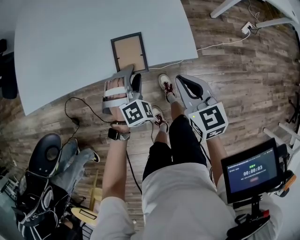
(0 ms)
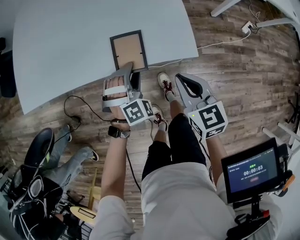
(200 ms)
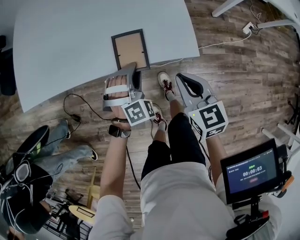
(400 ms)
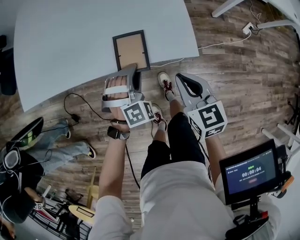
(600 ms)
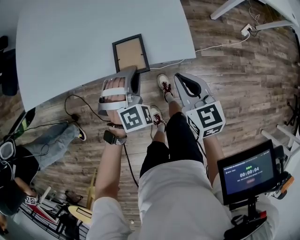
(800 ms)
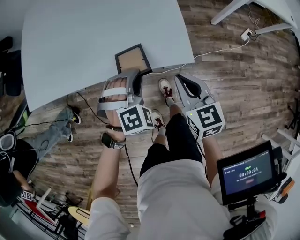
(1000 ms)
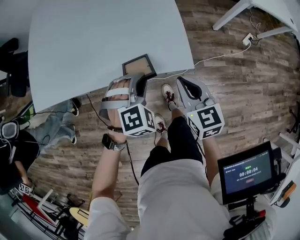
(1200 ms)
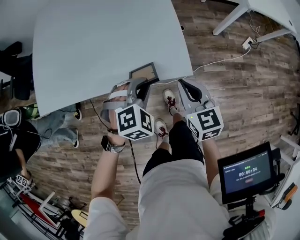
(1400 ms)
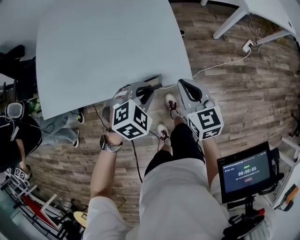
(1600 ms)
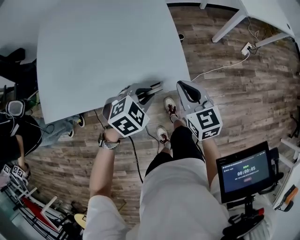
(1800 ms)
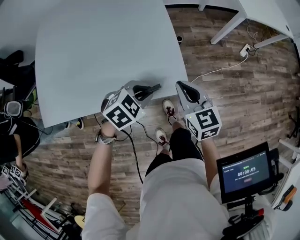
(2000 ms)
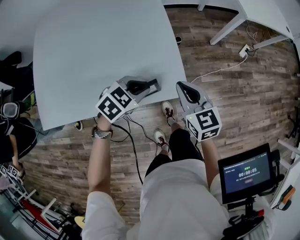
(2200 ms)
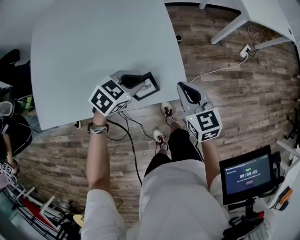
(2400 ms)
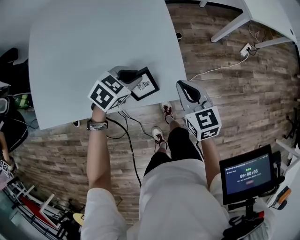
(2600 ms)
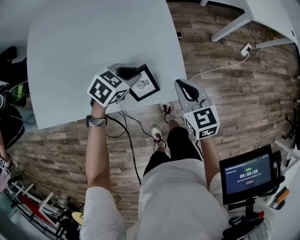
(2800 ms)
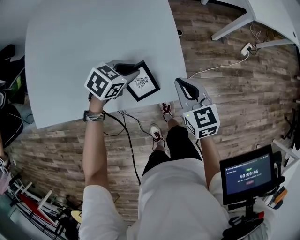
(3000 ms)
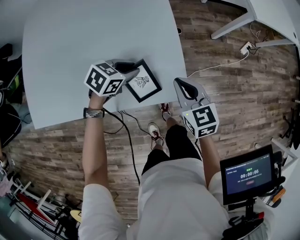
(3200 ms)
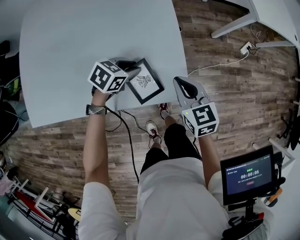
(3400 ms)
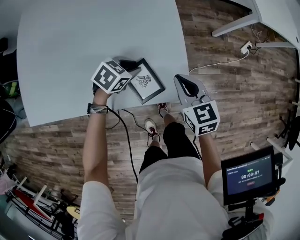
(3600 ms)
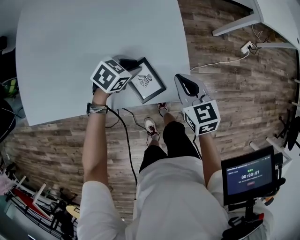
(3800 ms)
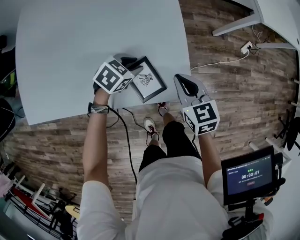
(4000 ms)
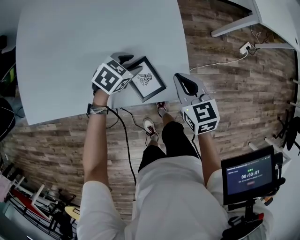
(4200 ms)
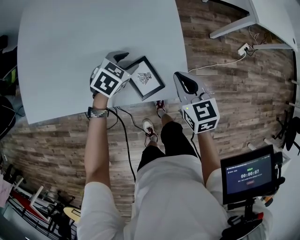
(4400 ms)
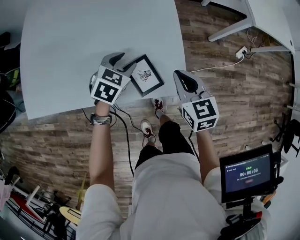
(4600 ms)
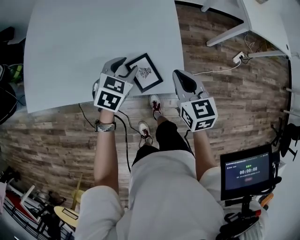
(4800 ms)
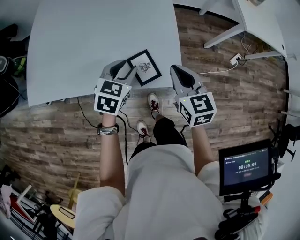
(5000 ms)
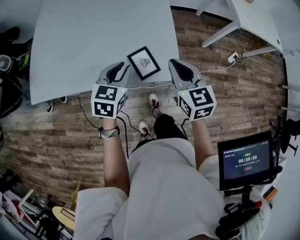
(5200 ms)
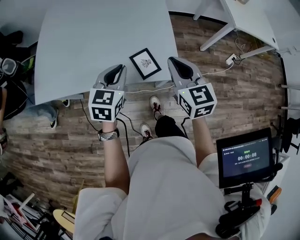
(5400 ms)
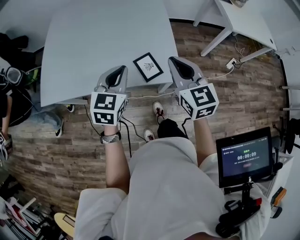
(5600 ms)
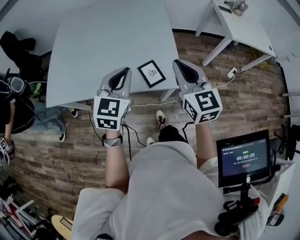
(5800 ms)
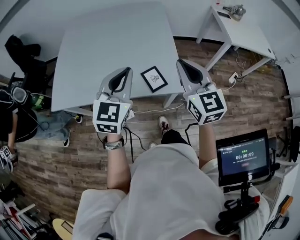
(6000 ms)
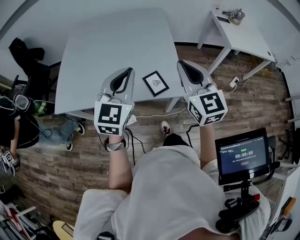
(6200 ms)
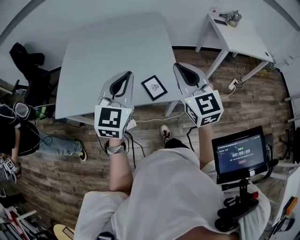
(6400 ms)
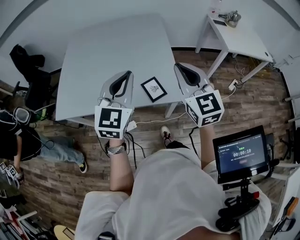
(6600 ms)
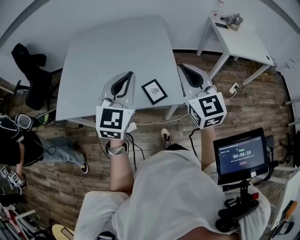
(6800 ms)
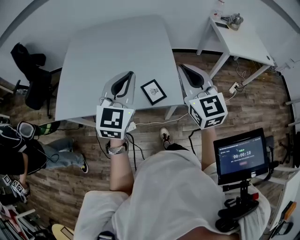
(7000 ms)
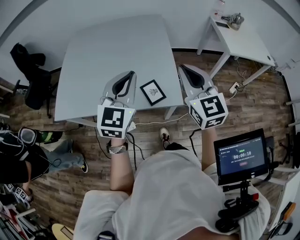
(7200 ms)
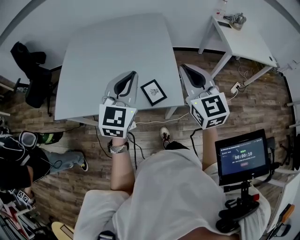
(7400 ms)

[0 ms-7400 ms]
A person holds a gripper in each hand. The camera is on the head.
0 ms to 1400 ms: The right gripper moves upward, roughly 5 cm. Meanwhile the left gripper goes about 15 cm upward, and closes its fingers.
1400 ms to 3000 ms: The right gripper moves forward, some 10 cm, while the left gripper moves forward and to the left, roughly 15 cm, and changes its angle by about 50 degrees.
3000 ms to 4400 ms: The left gripper opens up.
4400 ms to 6000 ms: The right gripper moves upward, roughly 30 cm, and turns by approximately 30 degrees, while the left gripper heads upward and backward, covering approximately 40 cm, tilts its fingers about 40 degrees upward, and closes its fingers.
6000 ms to 7400 ms: The grippers make only small movements.

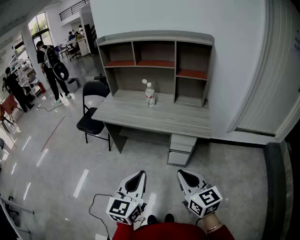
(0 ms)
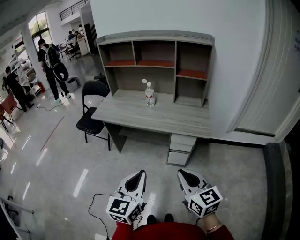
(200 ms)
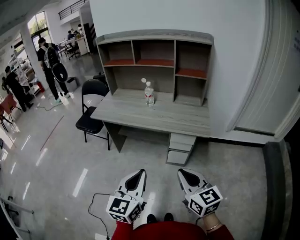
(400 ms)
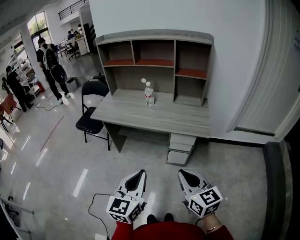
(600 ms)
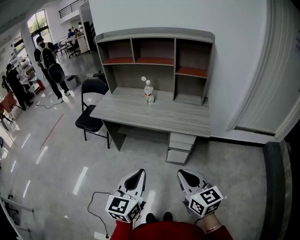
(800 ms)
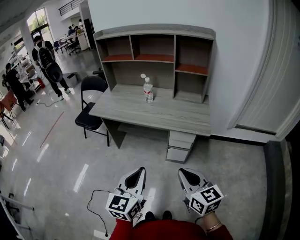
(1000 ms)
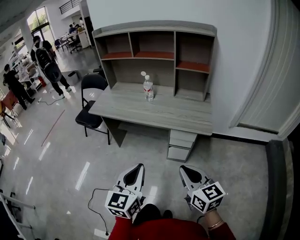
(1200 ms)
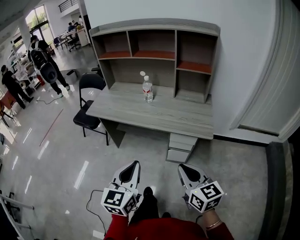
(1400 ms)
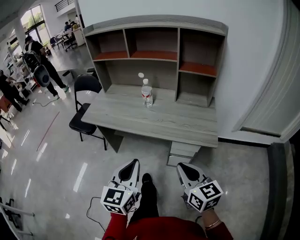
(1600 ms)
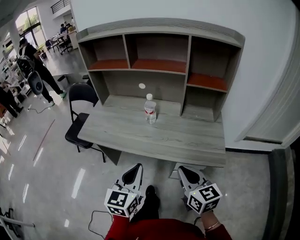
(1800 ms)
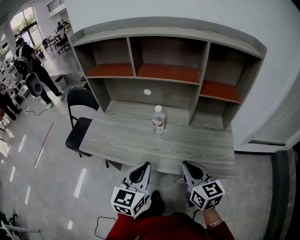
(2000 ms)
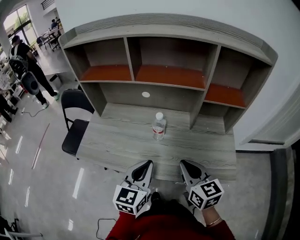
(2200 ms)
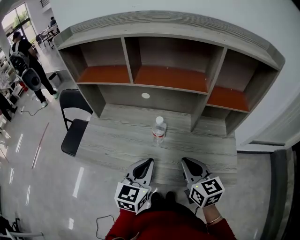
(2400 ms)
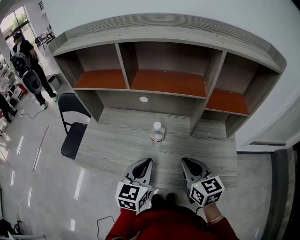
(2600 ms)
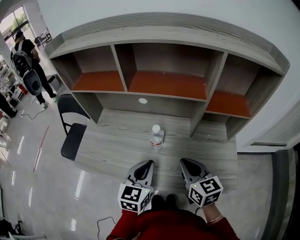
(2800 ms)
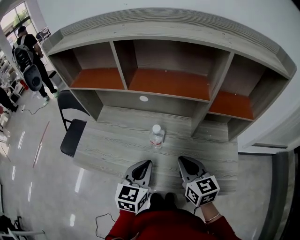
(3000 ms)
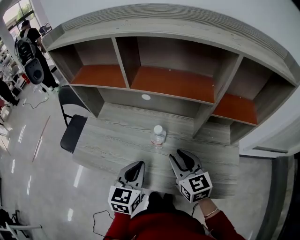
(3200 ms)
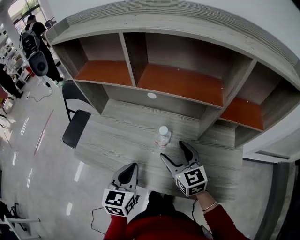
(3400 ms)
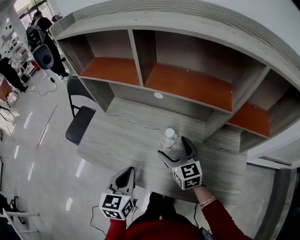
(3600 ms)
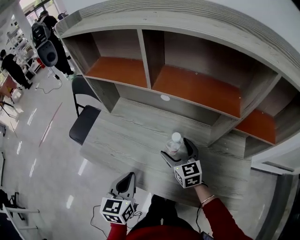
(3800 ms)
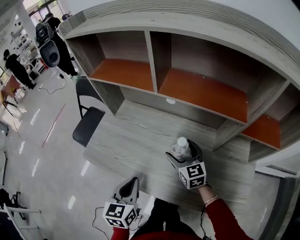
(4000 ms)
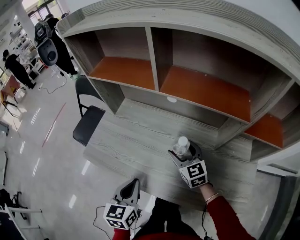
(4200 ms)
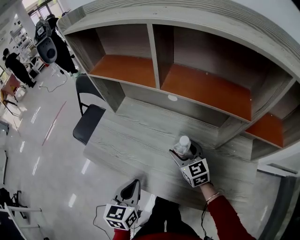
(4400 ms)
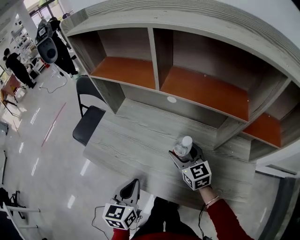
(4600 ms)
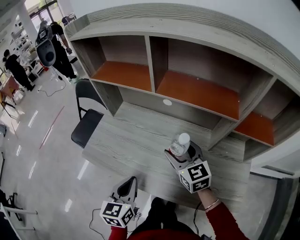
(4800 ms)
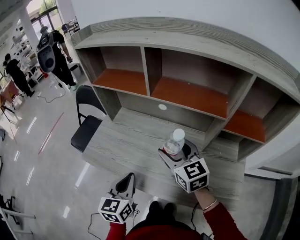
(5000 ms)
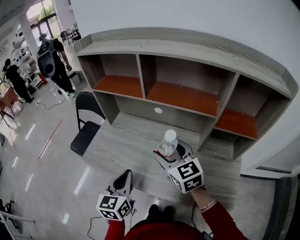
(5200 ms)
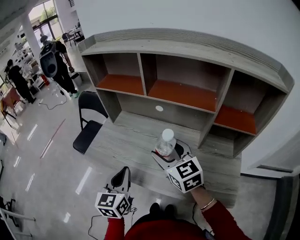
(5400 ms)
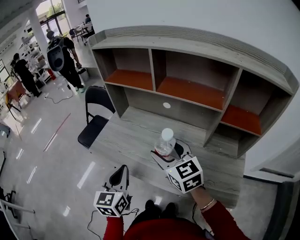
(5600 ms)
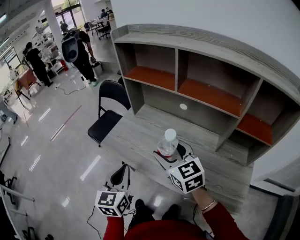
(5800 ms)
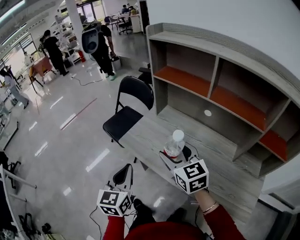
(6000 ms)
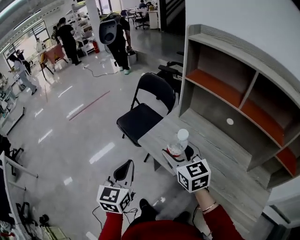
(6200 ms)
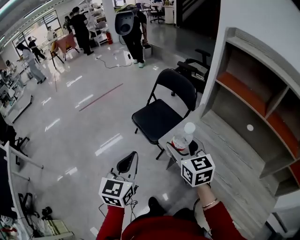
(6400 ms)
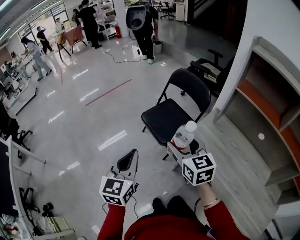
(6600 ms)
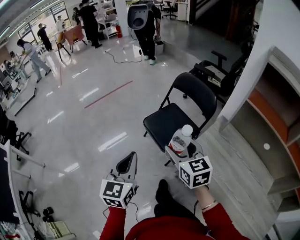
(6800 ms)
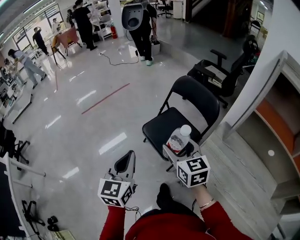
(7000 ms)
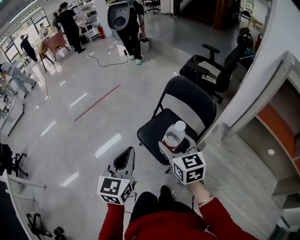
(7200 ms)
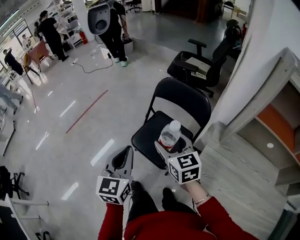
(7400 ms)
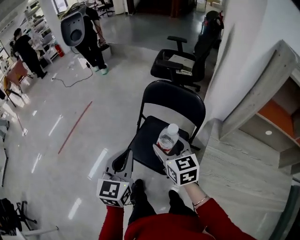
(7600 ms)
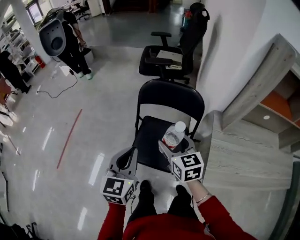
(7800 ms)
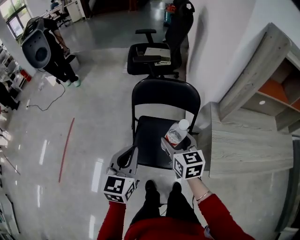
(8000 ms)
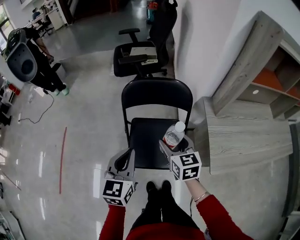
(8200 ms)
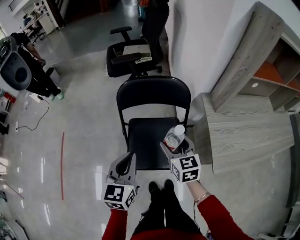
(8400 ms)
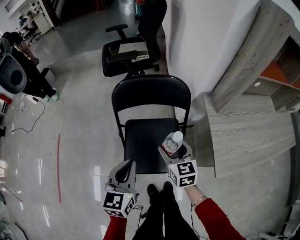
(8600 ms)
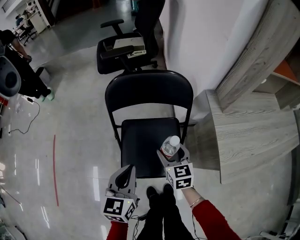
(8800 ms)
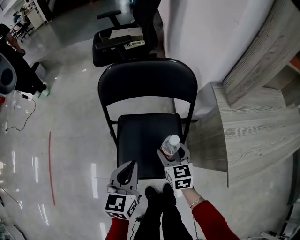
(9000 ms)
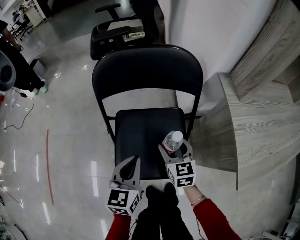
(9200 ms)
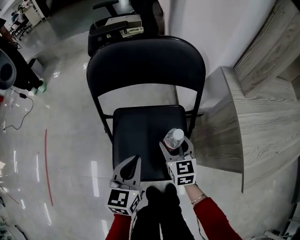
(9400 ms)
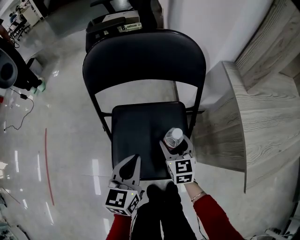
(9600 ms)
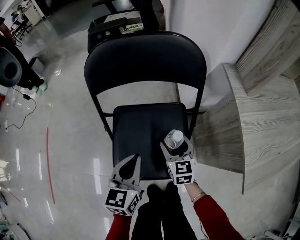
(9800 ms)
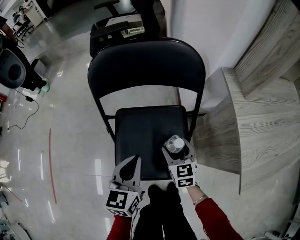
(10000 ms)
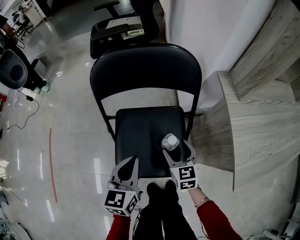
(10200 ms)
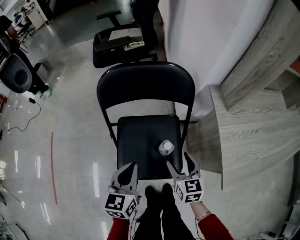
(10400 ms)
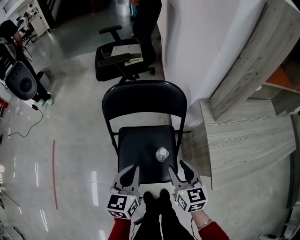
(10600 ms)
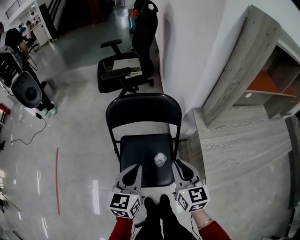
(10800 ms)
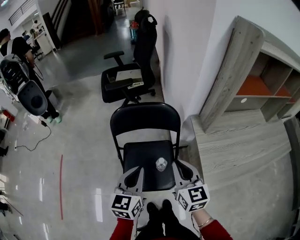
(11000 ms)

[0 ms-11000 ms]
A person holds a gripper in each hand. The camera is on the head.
0 ms to 1600 ms: The grippers both shift forward by about 15 cm.
1600 ms to 3200 ms: The two grippers go about 35 cm forward.
3200 ms to 4800 ms: The right gripper is displaced forward and to the left by roughly 10 cm, and opens. Meanwhile the left gripper is displaced to the left by roughly 10 cm.
4800 ms to 6200 ms: The two grippers go approximately 25 cm to the left. The right gripper changes its angle by some 20 degrees. Meanwhile the left gripper rotates about 20 degrees.
6200 ms to 7800 ms: Both grippers are carried approximately 50 cm. The right gripper swivels about 30 degrees. The left gripper changes its angle by approximately 30 degrees.
7800 ms to 9400 ms: The grippers both shift downward by about 30 cm. The left gripper turns by approximately 20 degrees, while the right gripper turns by approximately 30 degrees.
9400 ms to 11000 ms: The grippers both shift upward by about 30 cm. The right gripper closes.

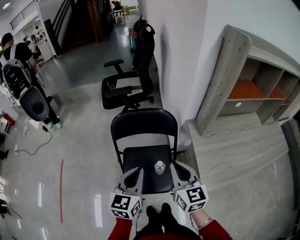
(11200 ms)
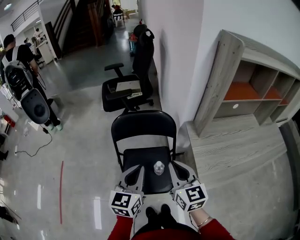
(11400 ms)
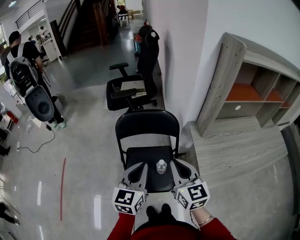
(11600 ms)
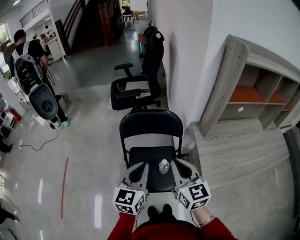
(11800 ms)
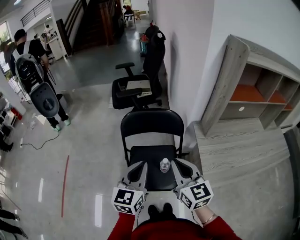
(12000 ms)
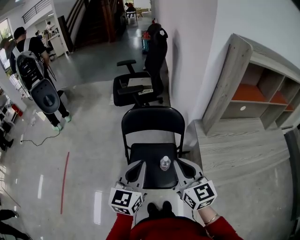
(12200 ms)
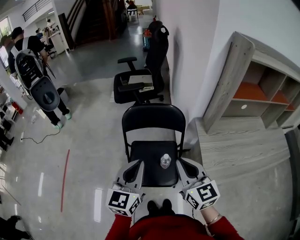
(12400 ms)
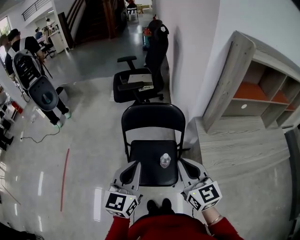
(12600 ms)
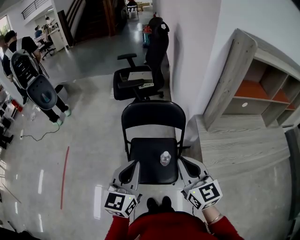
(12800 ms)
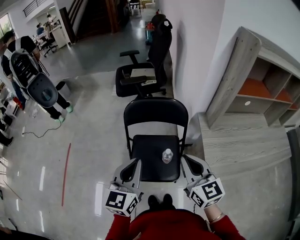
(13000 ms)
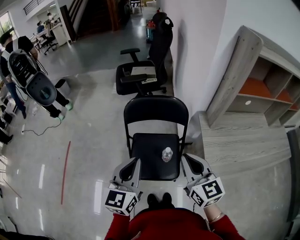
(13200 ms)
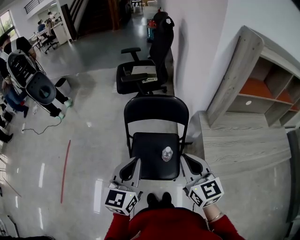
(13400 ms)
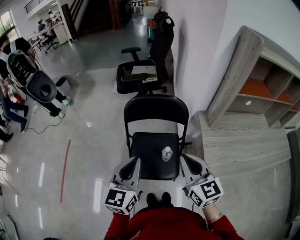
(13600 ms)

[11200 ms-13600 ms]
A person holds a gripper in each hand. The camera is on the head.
11200 ms to 12400 ms: The right gripper ends up some 5 cm from where it was, while the left gripper is displaced upward by about 5 cm.
12400 ms to 13600 ms: The grippers make only small movements.

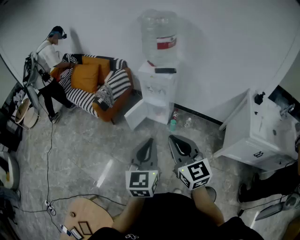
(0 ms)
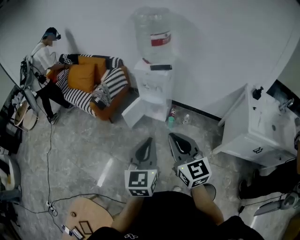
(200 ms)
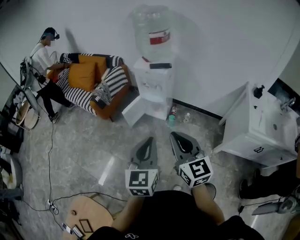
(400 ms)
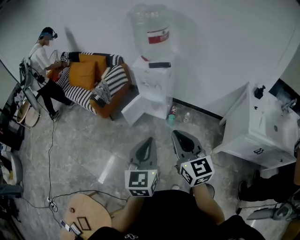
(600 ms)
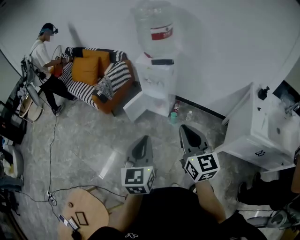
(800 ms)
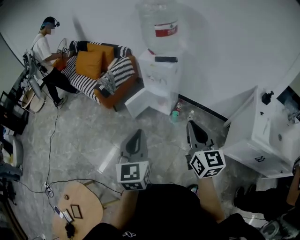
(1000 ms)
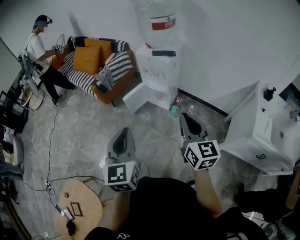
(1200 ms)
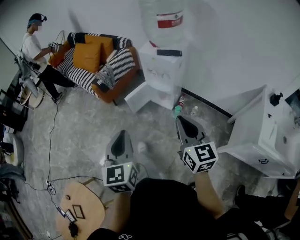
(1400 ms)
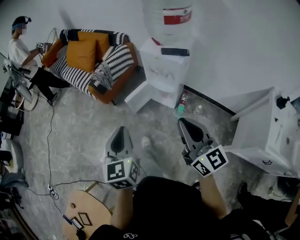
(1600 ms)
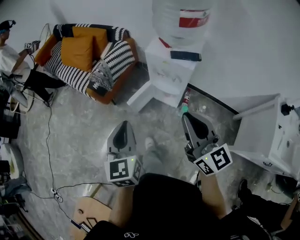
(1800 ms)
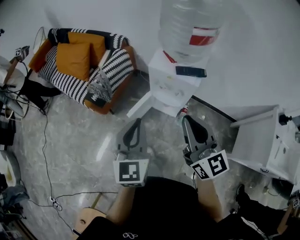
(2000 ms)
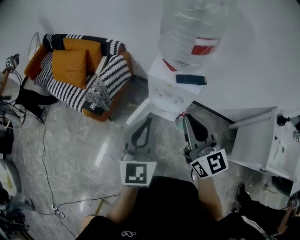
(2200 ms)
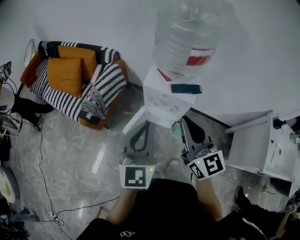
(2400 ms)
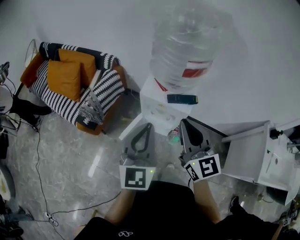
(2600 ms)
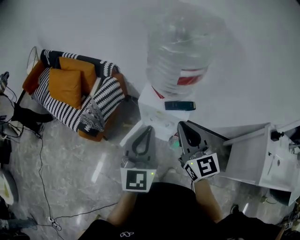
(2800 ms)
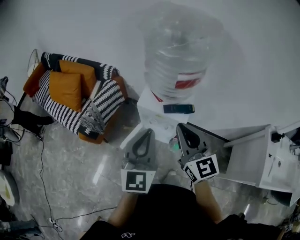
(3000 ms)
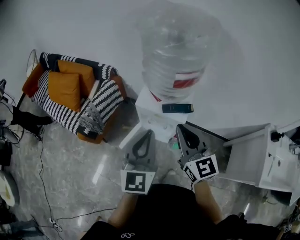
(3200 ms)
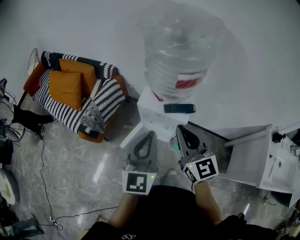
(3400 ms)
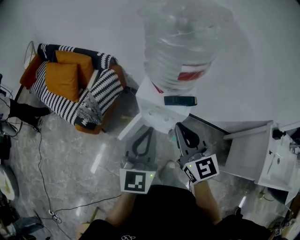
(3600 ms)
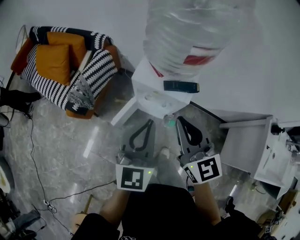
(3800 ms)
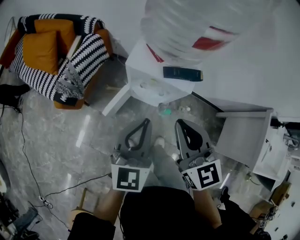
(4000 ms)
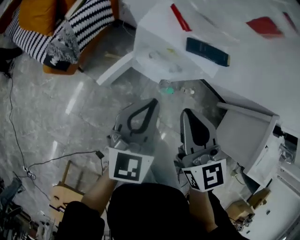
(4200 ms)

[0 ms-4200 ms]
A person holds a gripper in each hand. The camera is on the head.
0 ms to 1400 ms: The right gripper travels forward, to the right and downward by about 15 cm. Meanwhile the left gripper moves forward, roughly 5 cm, reaches approximately 5 cm to the right, then returns, and swivels approximately 20 degrees.
1400 ms to 2800 ms: Both grippers move forward, approximately 40 cm. The left gripper swivels approximately 30 degrees.
2800 ms to 4200 ms: The two grippers go approximately 15 cm downward.
